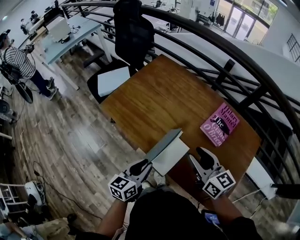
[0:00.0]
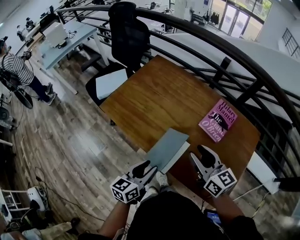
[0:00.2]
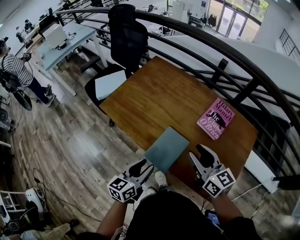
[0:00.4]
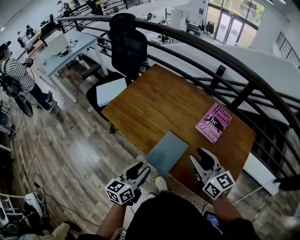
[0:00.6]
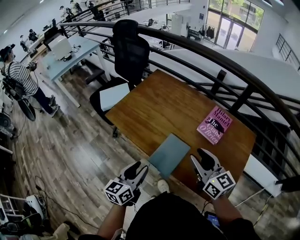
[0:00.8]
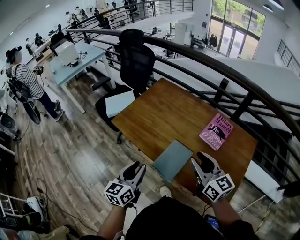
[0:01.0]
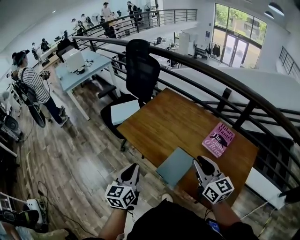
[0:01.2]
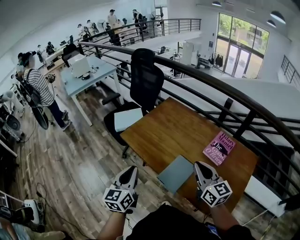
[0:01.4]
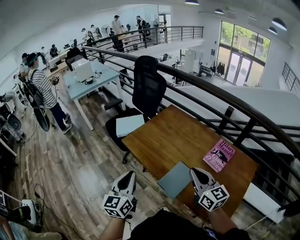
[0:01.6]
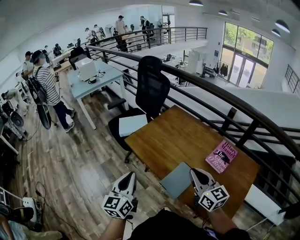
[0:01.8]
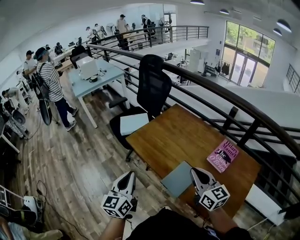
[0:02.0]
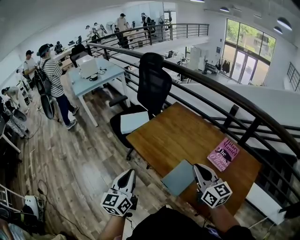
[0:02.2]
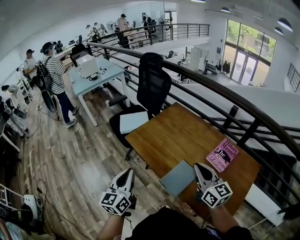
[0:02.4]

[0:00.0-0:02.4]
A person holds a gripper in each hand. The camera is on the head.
0:00.0 to 0:01.2: The left gripper heads upward and to the left, covering roughly 15 cm, and swivels approximately 20 degrees, while the right gripper moves upward, approximately 10 cm.
0:01.2 to 0:02.4: The left gripper is displaced upward by about 5 cm.

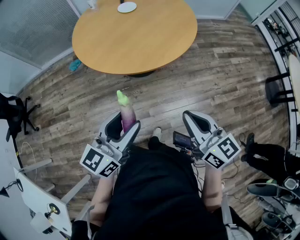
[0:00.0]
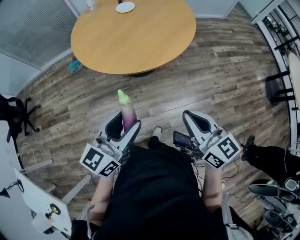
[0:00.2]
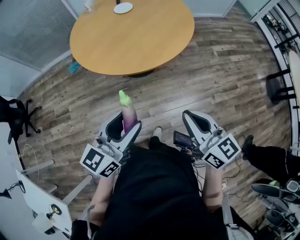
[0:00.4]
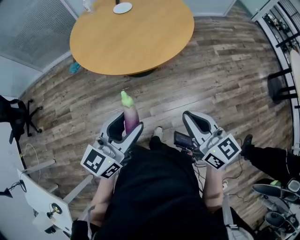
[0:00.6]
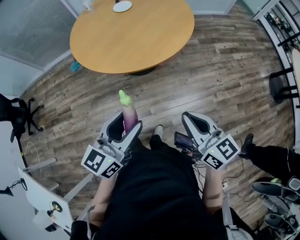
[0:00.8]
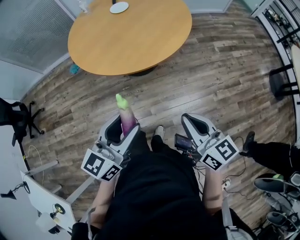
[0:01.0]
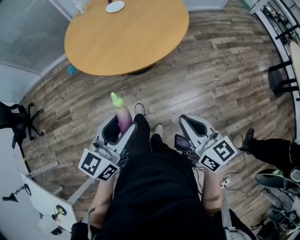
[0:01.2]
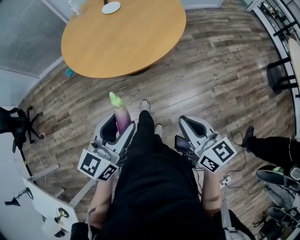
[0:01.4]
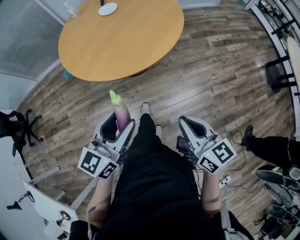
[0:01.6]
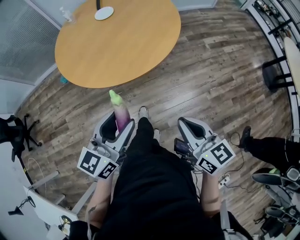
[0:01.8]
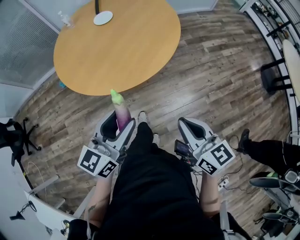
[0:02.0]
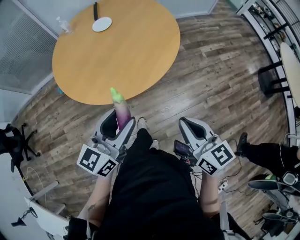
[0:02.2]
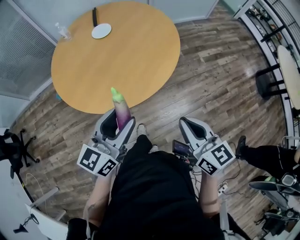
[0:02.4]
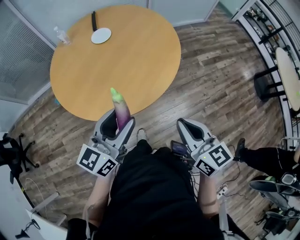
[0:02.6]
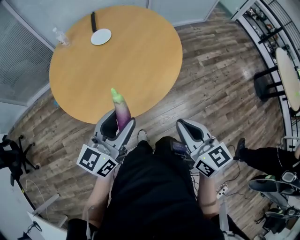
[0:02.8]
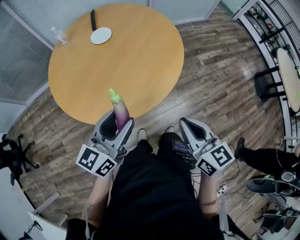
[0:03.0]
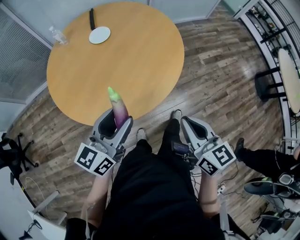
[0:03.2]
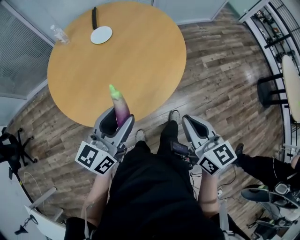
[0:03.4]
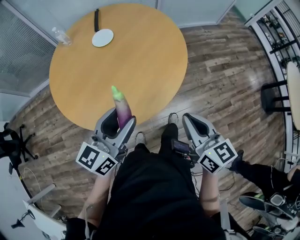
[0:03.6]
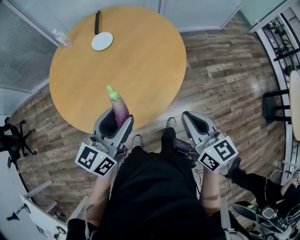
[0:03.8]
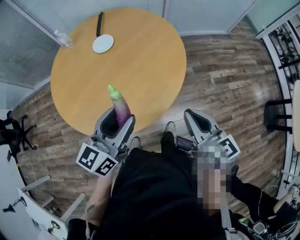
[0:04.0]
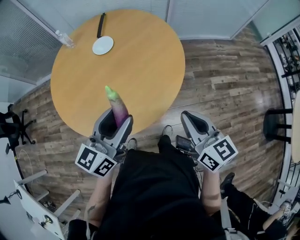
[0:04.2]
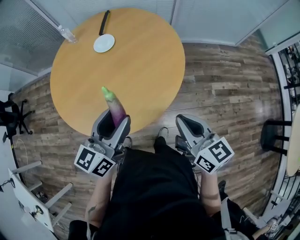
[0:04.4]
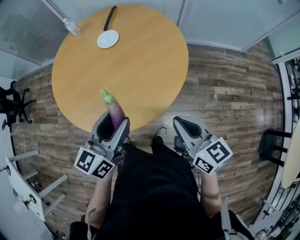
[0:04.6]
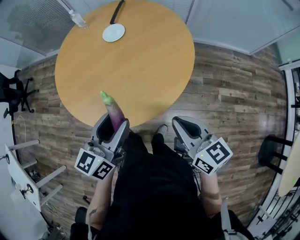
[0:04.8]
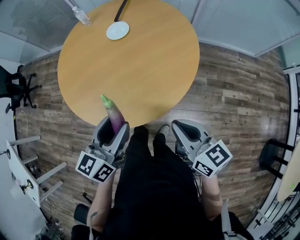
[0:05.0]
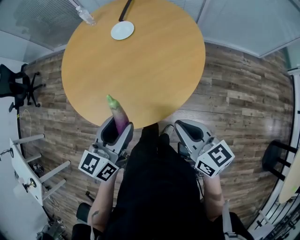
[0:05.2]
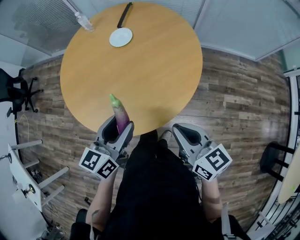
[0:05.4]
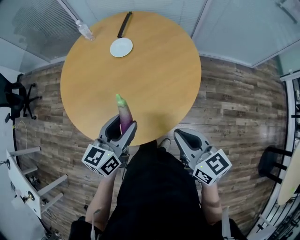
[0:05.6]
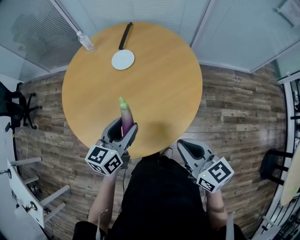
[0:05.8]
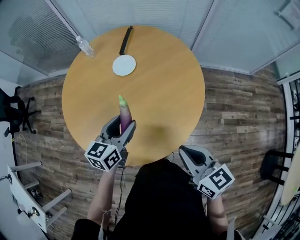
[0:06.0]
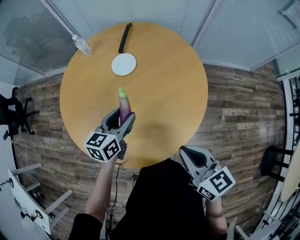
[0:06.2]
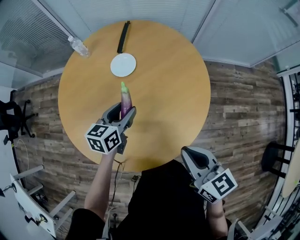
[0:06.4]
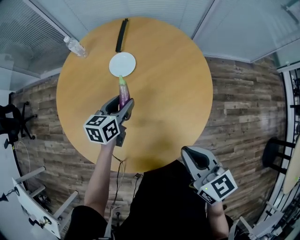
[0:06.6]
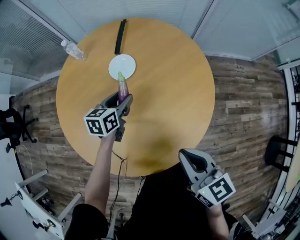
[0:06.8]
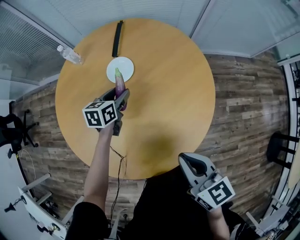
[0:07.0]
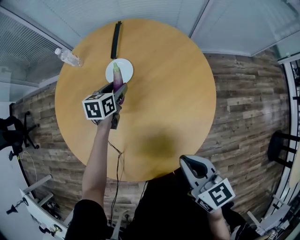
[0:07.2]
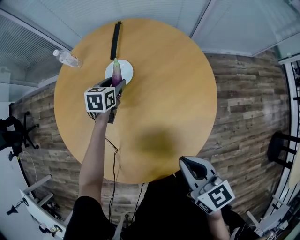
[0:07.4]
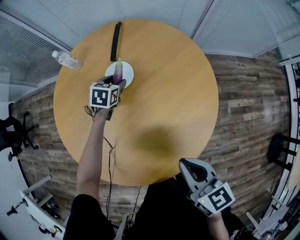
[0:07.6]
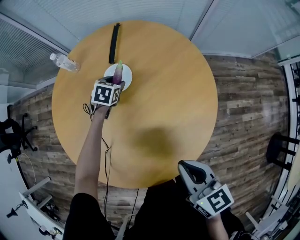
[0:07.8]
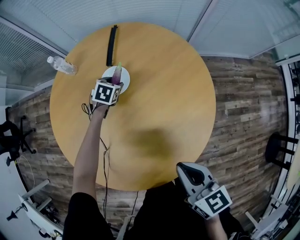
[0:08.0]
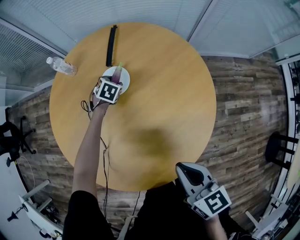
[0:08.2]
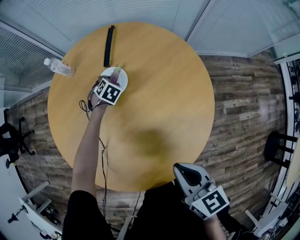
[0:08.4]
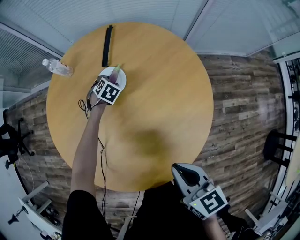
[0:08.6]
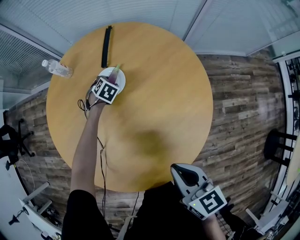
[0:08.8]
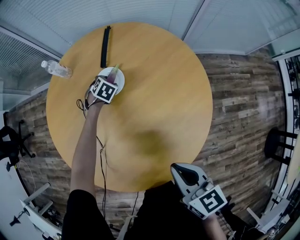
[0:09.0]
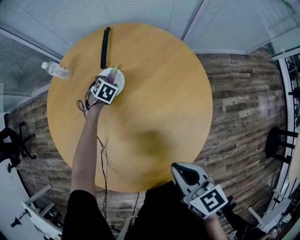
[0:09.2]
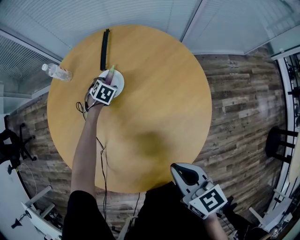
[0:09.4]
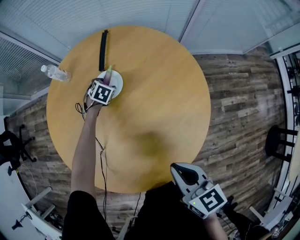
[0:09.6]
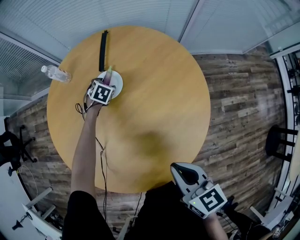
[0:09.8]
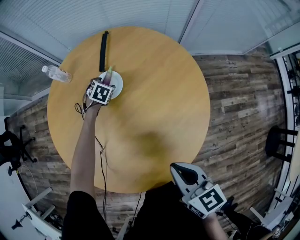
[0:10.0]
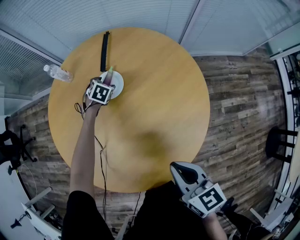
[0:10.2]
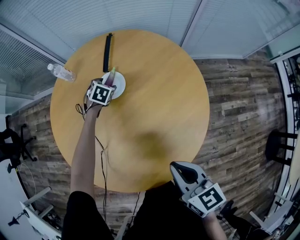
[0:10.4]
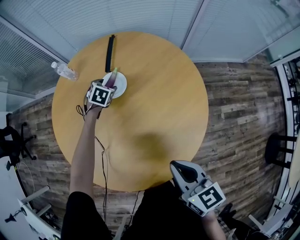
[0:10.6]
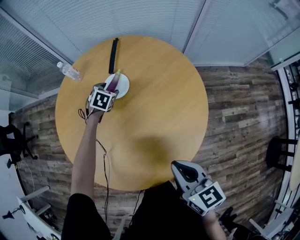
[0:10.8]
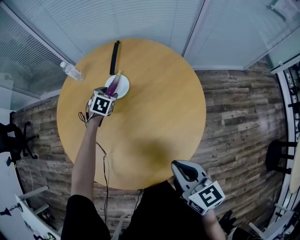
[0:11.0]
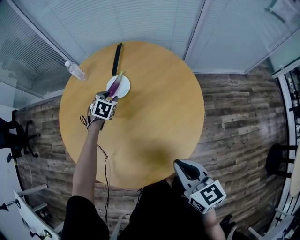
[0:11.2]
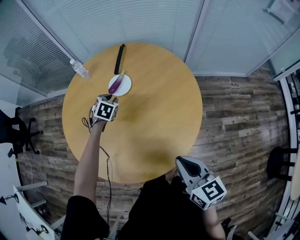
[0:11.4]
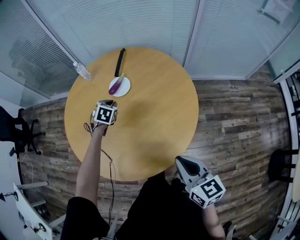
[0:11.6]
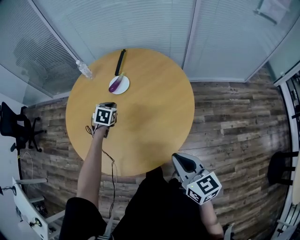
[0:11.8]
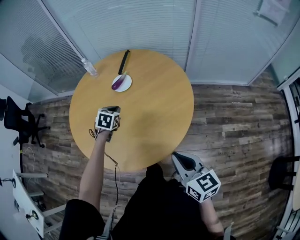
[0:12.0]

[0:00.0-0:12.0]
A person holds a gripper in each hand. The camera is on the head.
0:00.0 to 0:01.6: The left gripper changes place by roughly 5 cm; the right gripper ends up roughly 5 cm from where it was.
0:01.6 to 0:03.0: The grippers both shift forward by roughly 25 cm.
0:03.0 to 0:04.4: The left gripper heads to the right and forward, covering approximately 25 cm, and rotates roughly 20 degrees. The right gripper moves forward and to the right, approximately 30 cm, and rotates roughly 20 degrees.
0:04.4 to 0:06.0: The left gripper travels forward and downward by roughly 20 cm; the right gripper is displaced forward and to the left by some 10 cm.
0:06.0 to 0:07.6: The left gripper is displaced forward and downward by some 35 cm, and tips its fingers downward by roughly 30 degrees, while the right gripper is displaced forward and to the left by about 10 cm.
0:07.6 to 0:09.0: The left gripper travels downward by approximately 10 cm, and changes its angle by about 30 degrees.
0:09.0 to 0:10.4: There are only small adjustments of the grippers.
0:10.4 to 0:12.0: The right gripper travels backward and to the right by some 20 cm, while the left gripper goes roughly 30 cm backward and upward, and closes its fingers.

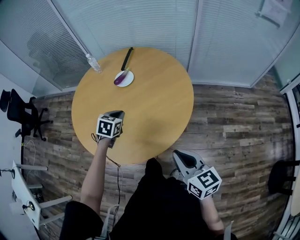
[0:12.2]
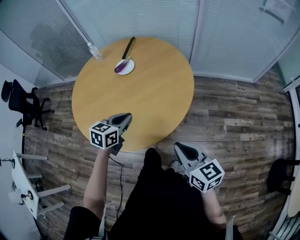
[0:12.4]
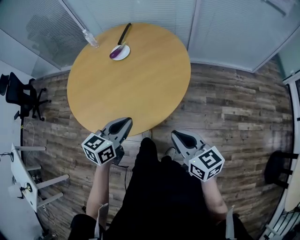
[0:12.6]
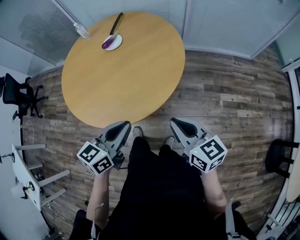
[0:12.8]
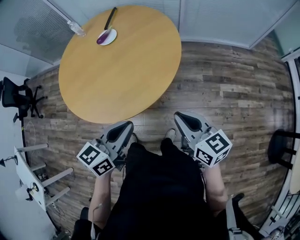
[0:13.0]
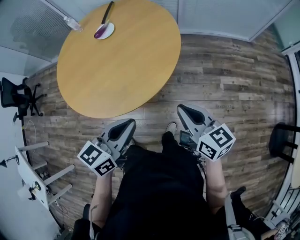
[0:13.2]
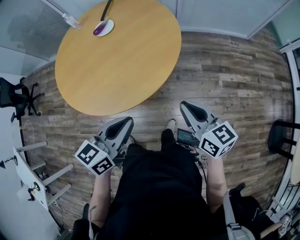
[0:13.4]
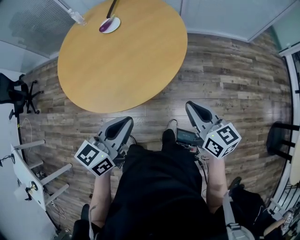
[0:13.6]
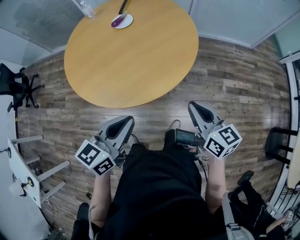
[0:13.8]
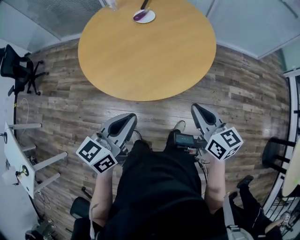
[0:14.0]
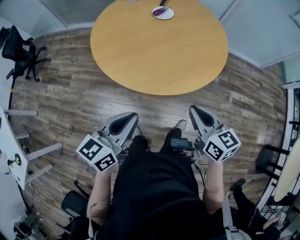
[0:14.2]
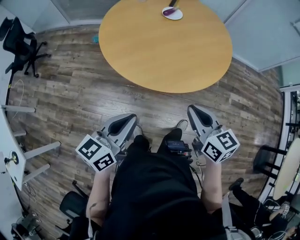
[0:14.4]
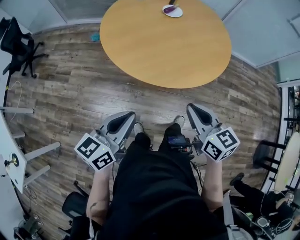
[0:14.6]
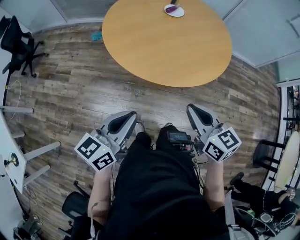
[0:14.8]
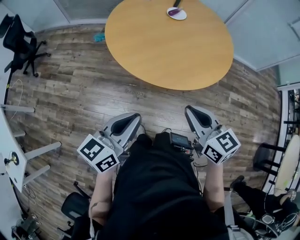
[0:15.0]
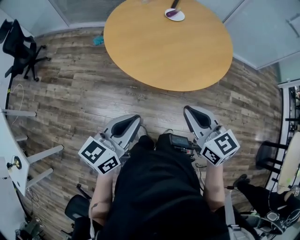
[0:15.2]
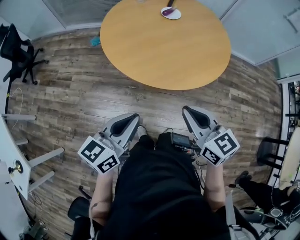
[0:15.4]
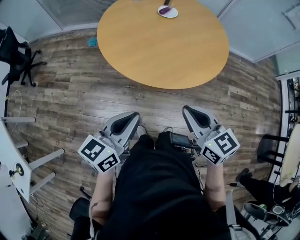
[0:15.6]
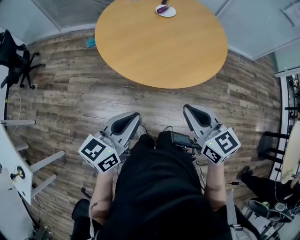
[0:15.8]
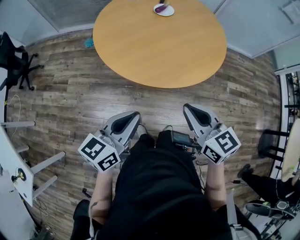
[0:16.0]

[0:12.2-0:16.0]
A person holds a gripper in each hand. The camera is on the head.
0:12.2 to 0:13.4: The right gripper moves to the right and backward, roughly 10 cm, while the left gripper heads backward and to the right, covering approximately 30 cm, and turns by roughly 40 degrees.
0:13.4 to 0:14.8: The right gripper travels to the left by approximately 35 cm. The left gripper goes roughly 40 cm to the left and backward.
0:14.8 to 0:16.0: There are only small adjustments of the grippers.

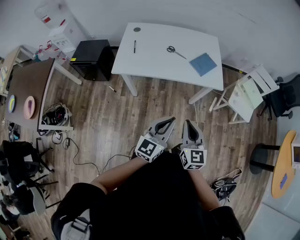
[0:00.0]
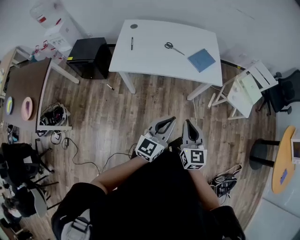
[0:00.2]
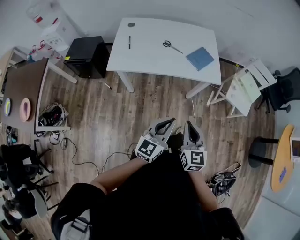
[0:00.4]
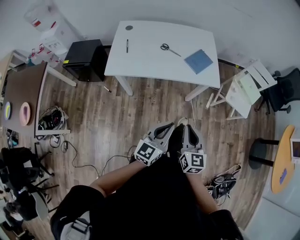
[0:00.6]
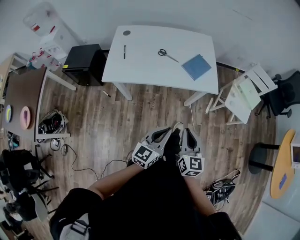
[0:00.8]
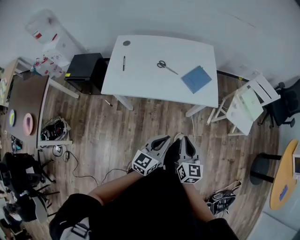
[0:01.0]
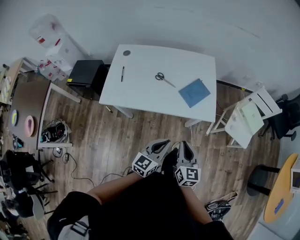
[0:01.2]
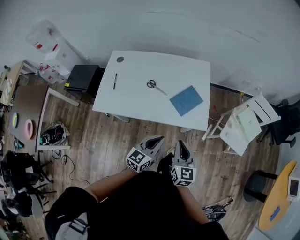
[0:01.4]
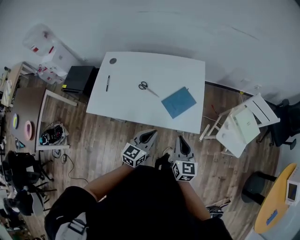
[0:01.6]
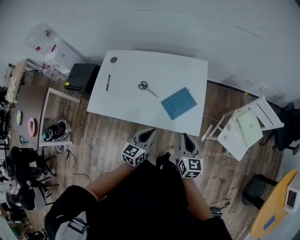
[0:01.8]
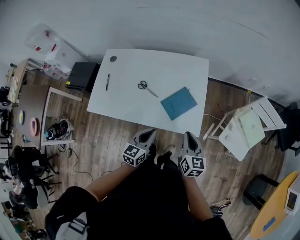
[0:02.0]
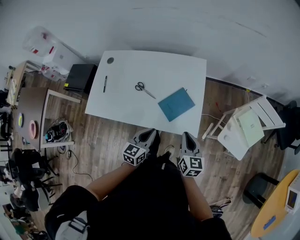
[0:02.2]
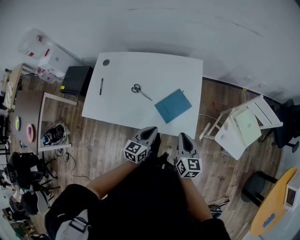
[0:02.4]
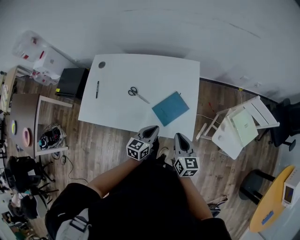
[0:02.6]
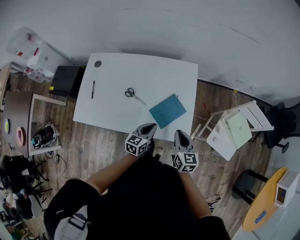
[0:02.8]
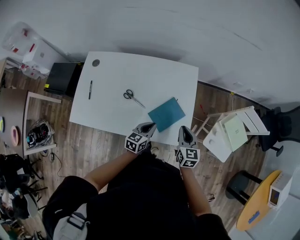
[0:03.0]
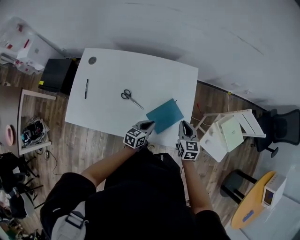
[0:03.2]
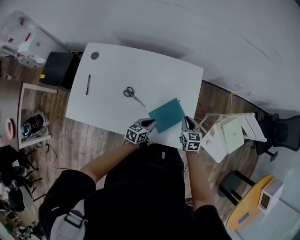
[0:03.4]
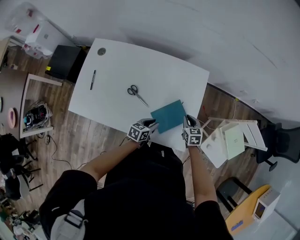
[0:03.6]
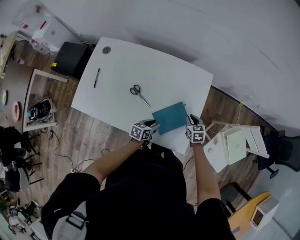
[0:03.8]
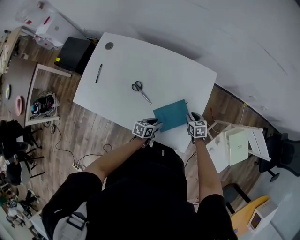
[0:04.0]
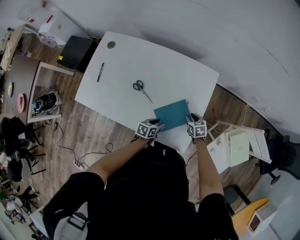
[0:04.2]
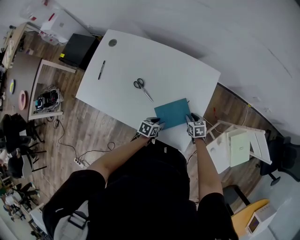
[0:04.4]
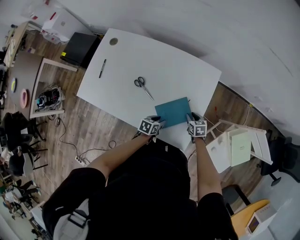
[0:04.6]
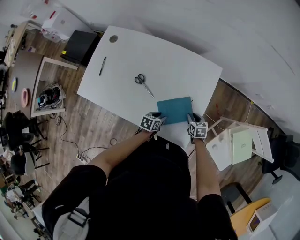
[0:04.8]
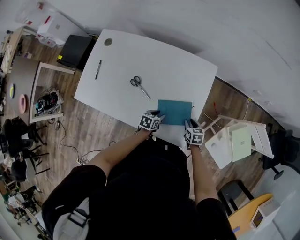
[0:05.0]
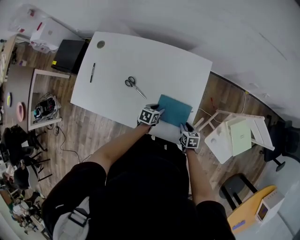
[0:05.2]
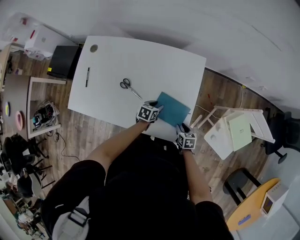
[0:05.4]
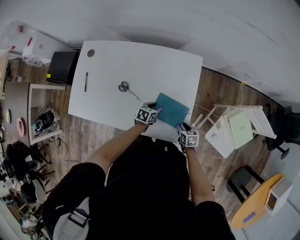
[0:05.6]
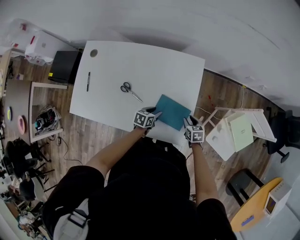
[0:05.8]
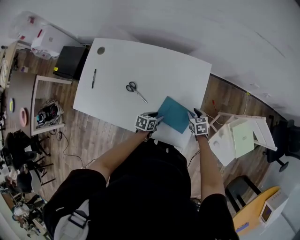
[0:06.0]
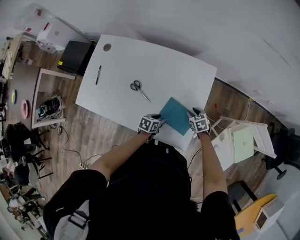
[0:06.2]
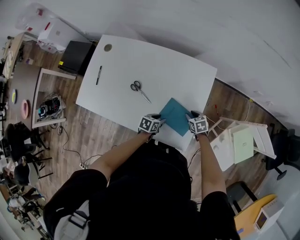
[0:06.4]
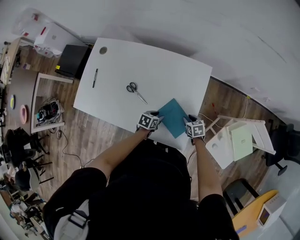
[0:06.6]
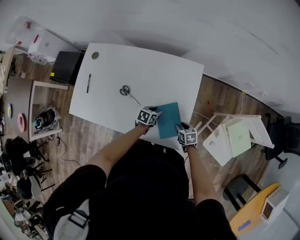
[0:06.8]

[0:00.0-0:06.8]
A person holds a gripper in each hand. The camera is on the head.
0:00.0 to 0:01.4: The two grippers go roughly 25 cm forward.
0:01.4 to 0:02.8: The right gripper travels forward by some 20 cm; the left gripper shifts about 25 cm forward and downward.
0:02.8 to 0:04.0: The left gripper goes roughly 15 cm downward, changes its angle by approximately 30 degrees, and opens; the right gripper heads downward and forward, covering about 25 cm, and turns by roughly 40 degrees.
0:04.0 to 0:05.4: The left gripper is displaced forward by roughly 5 cm; the right gripper travels backward by some 15 cm.
0:05.4 to 0:06.8: The right gripper reaches some 15 cm forward, then returns.
